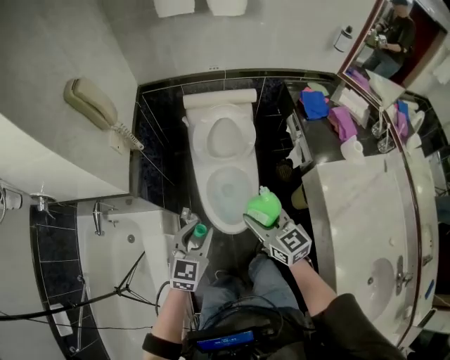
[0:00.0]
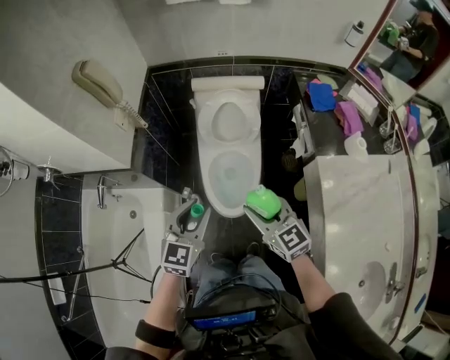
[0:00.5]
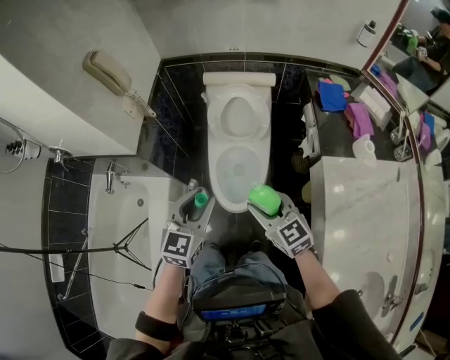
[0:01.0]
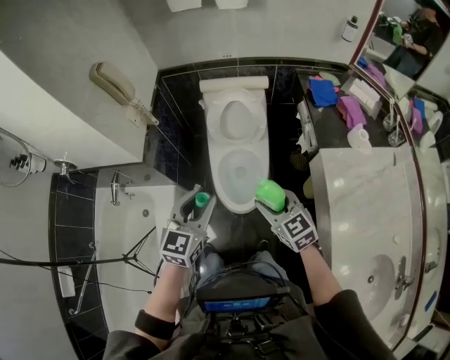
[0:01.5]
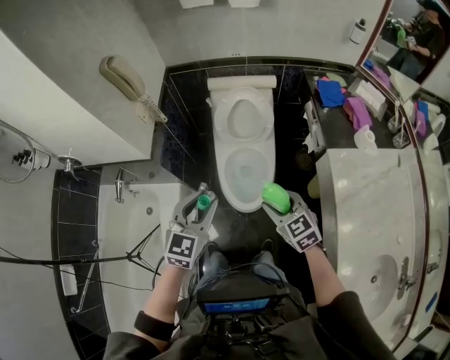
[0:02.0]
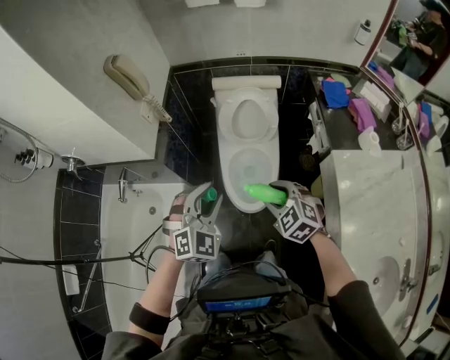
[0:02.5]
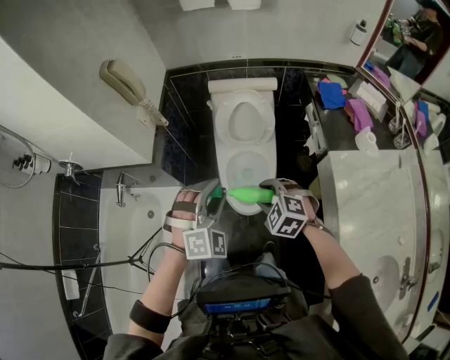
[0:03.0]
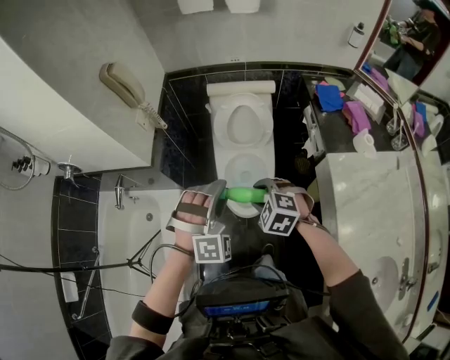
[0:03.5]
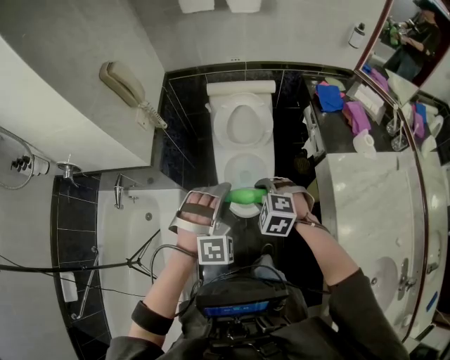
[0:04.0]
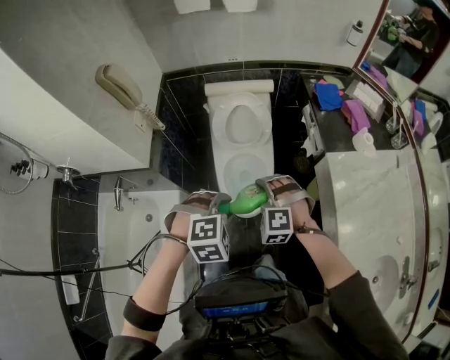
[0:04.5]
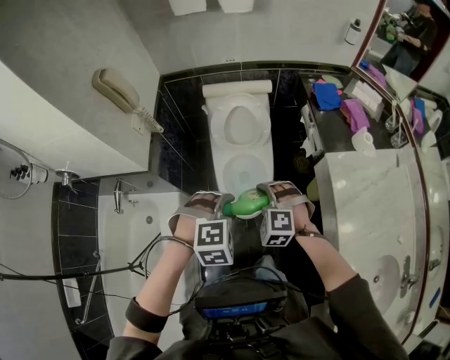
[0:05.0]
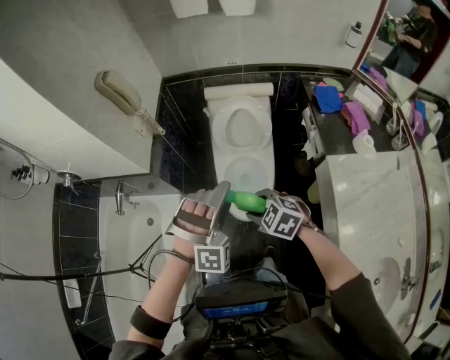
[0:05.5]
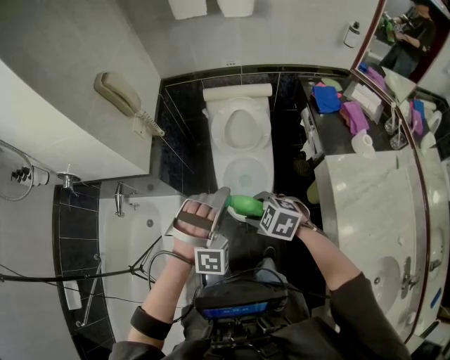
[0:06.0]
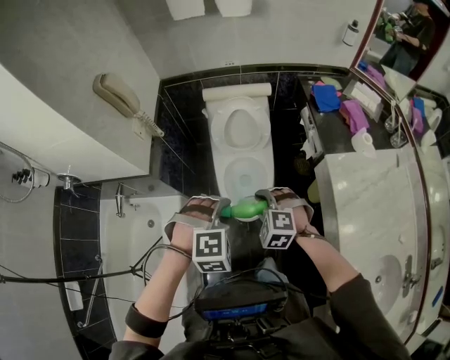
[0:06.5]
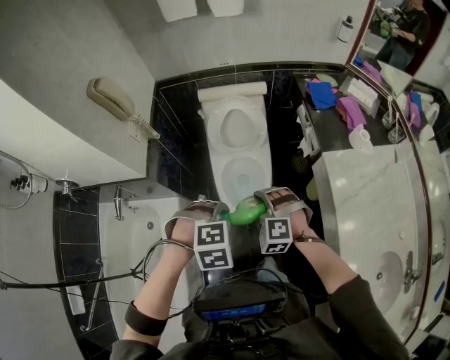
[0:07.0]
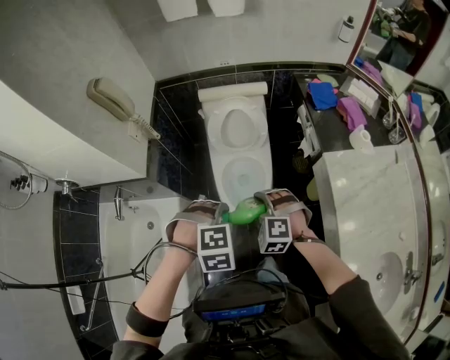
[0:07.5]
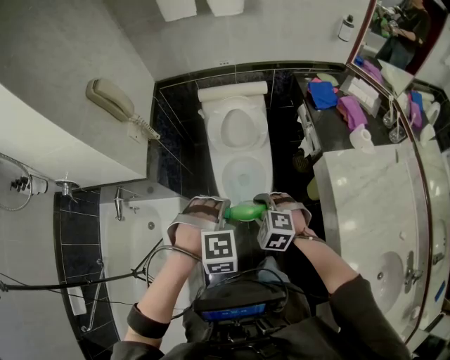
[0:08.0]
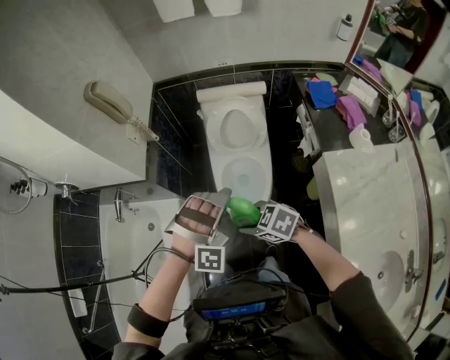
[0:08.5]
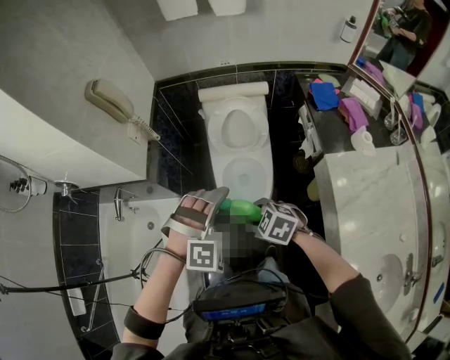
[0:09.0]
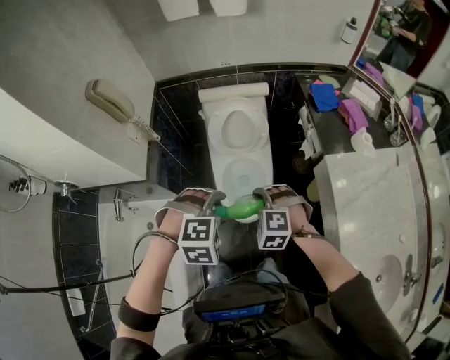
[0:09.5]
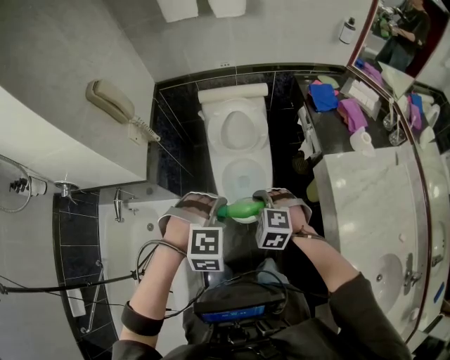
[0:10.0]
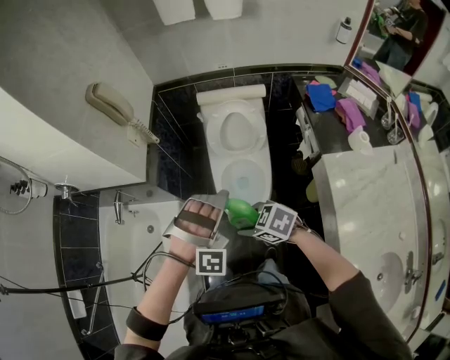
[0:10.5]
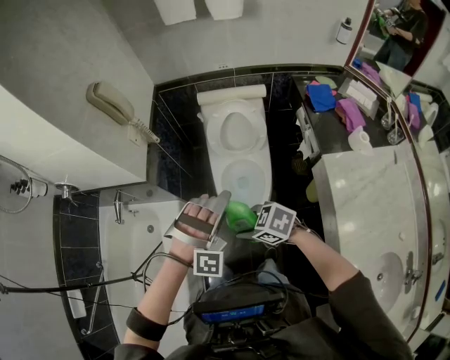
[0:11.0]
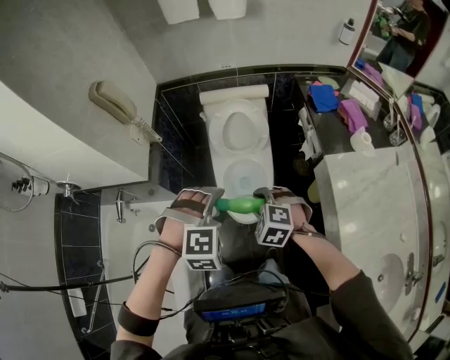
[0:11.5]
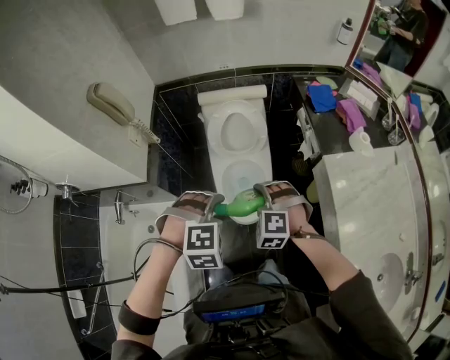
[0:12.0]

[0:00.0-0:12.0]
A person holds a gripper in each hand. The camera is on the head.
0:00.0 to 0:02.0: The right gripper heads backward, covering some 10 cm, and changes its angle by roughly 20 degrees, while the left gripper is displaced upward by some 10 cm.
0:02.0 to 0:04.0: The right gripper shifts by roughly 5 cm, and rotates some 50 degrees; the left gripper is displaced to the right by about 5 cm, and rotates around the line of its fingers by approximately 70 degrees, clockwise from behind.
0:04.0 to 0:06.0: The right gripper swivels about 20 degrees, while the left gripper reaches about 5 cm downward, then returns, and opens, then closes again.
0:06.0 to 0:08.0: The right gripper changes place by about 5 cm, and swivels about 20 degrees. Meanwhile the left gripper goes some 5 cm downward, and tips its fingers downward by some 40 degrees.
0:08.0 to 0:10.0: The left gripper opens and closes again.
0:10.0 to 0:12.0: The left gripper opens, then closes again.

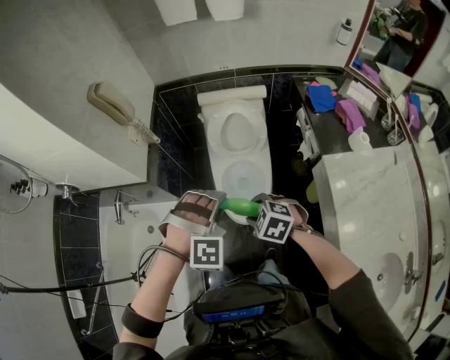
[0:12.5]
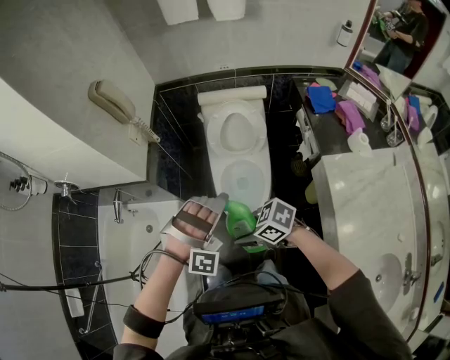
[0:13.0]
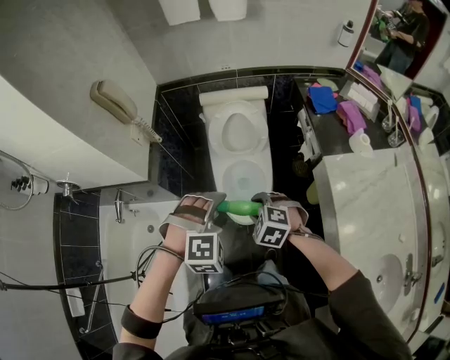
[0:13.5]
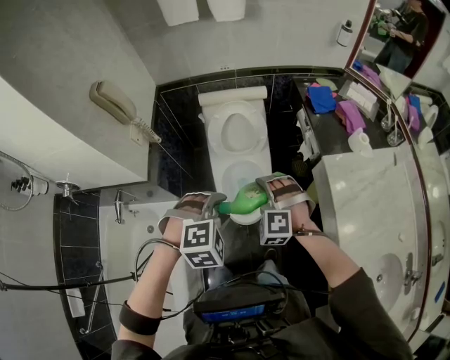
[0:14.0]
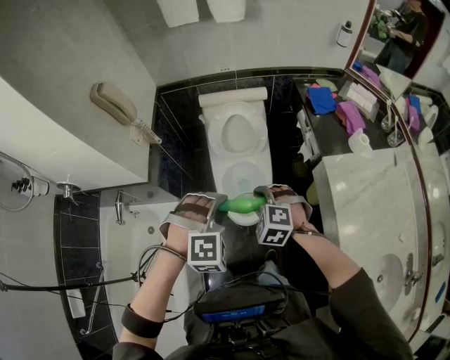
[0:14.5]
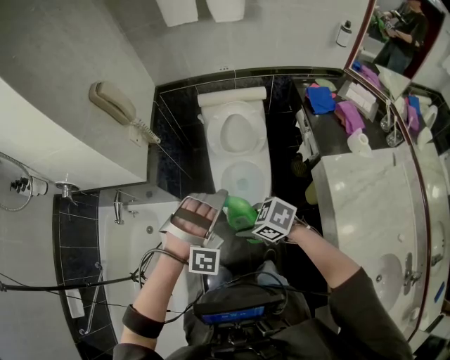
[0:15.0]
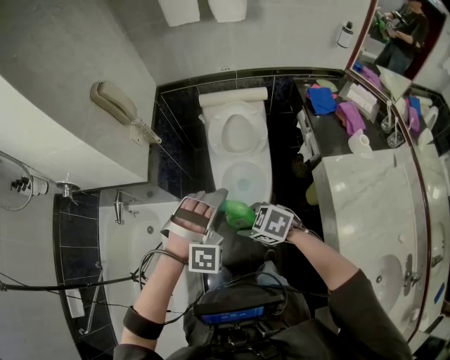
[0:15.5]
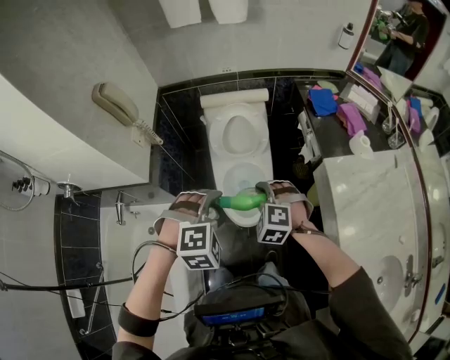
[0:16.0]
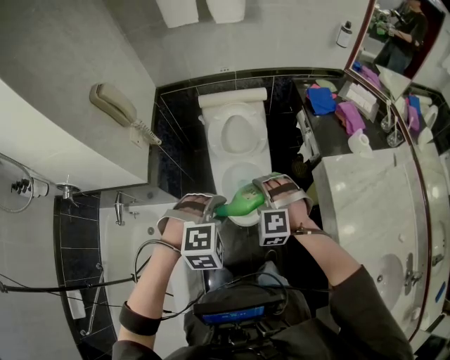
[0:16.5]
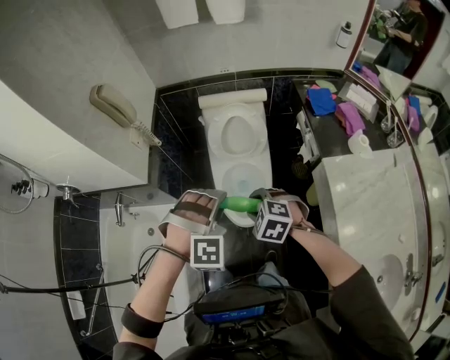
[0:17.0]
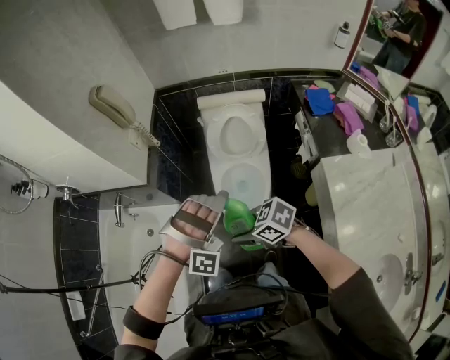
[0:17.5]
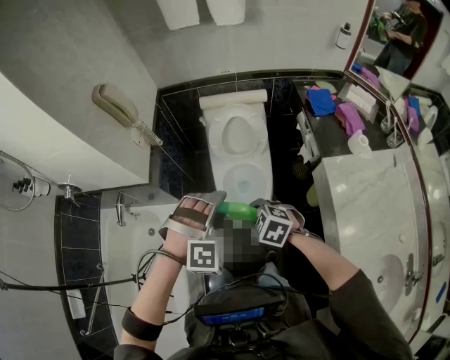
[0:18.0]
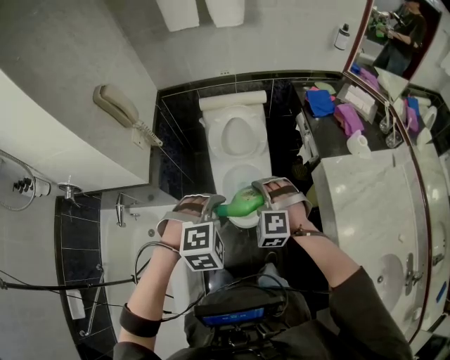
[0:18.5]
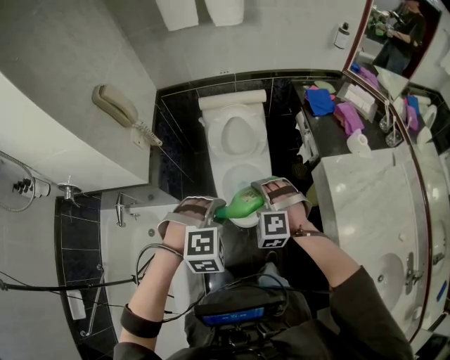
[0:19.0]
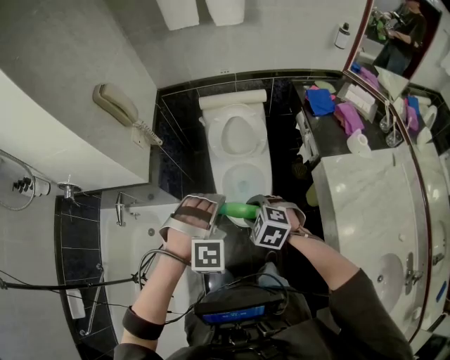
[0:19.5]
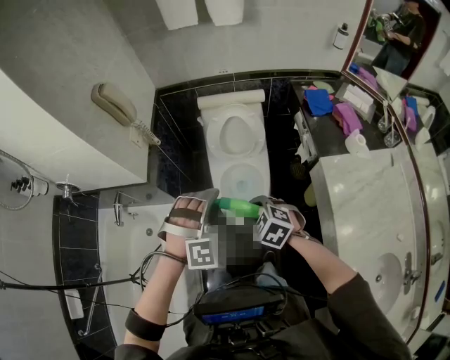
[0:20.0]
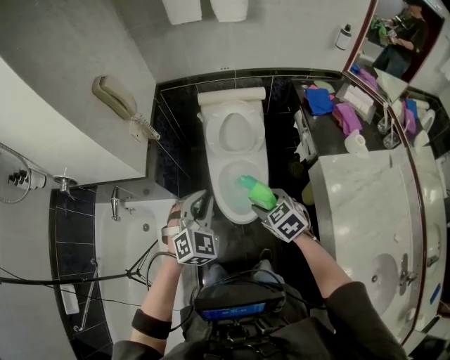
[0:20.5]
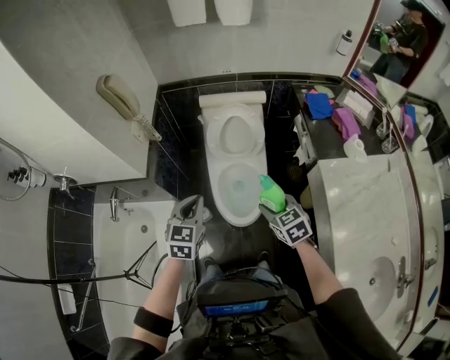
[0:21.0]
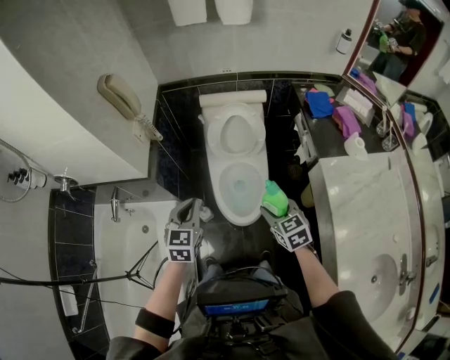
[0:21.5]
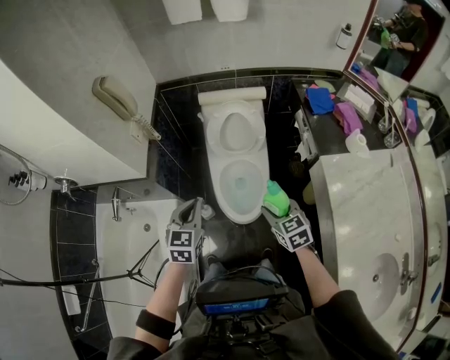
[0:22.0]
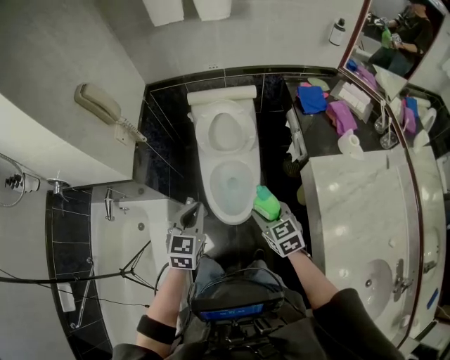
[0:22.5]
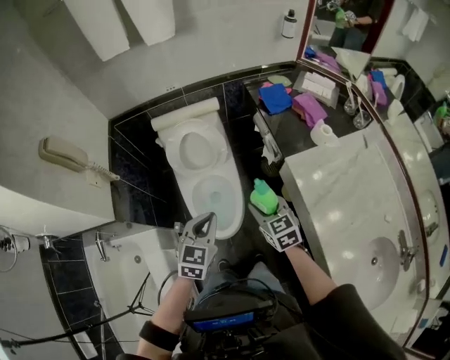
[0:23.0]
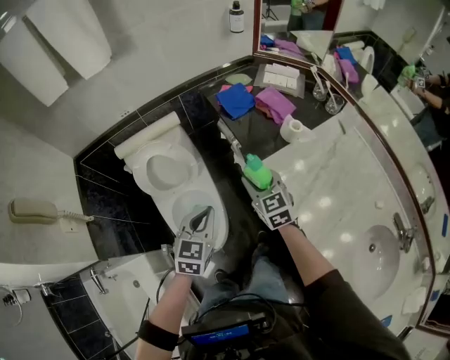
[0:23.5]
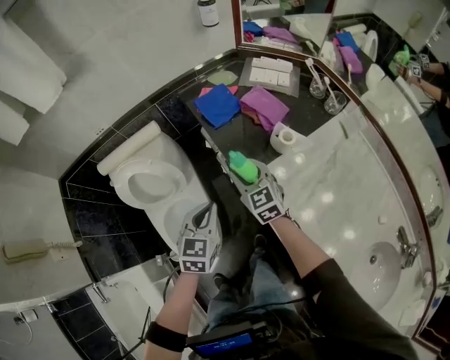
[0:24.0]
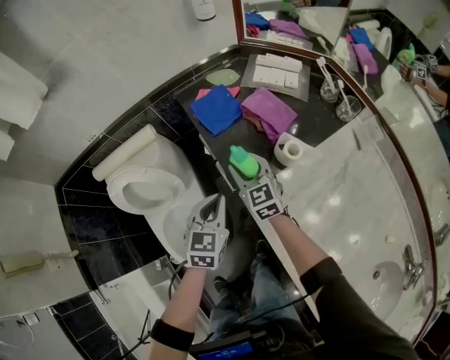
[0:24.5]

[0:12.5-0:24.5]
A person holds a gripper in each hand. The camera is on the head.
0:12.5 to 0:14.5: The left gripper opens and closes again, while the right gripper turns by approximately 20 degrees.
0:14.5 to 0:16.5: The left gripper opens, then closes again. The right gripper rotates about 20 degrees.
0:18.5 to 0:20.5: The right gripper twists about 50 degrees clockwise, seen from behind; the left gripper shifts by roughly 5 cm, swivels roughly 40 degrees, and closes up.
0:20.5 to 0:22.5: The left gripper goes to the left and returns, about 5 cm each way, and swivels about 40 degrees; the right gripper travels to the right by roughly 5 cm.
0:22.5 to 0:24.5: The two grippers travel together, approximately 50 cm. The right gripper turns by approximately 30 degrees. The left gripper swivels approximately 30 degrees.

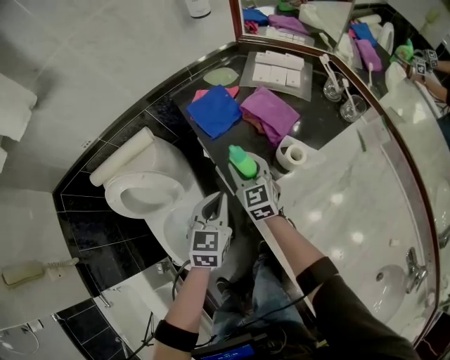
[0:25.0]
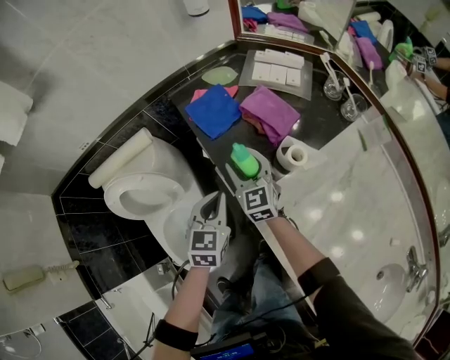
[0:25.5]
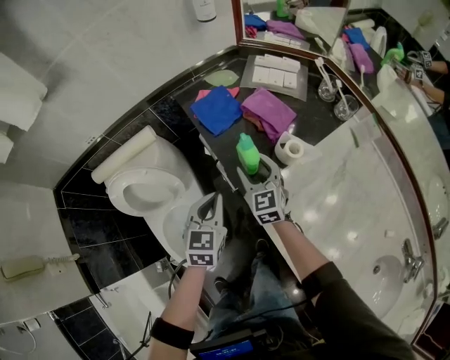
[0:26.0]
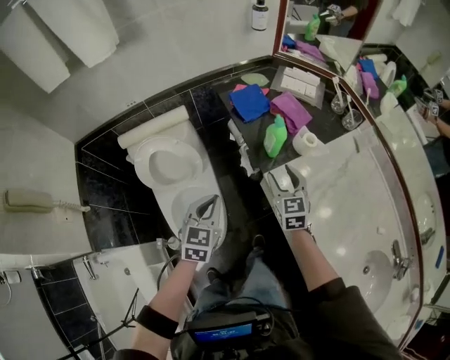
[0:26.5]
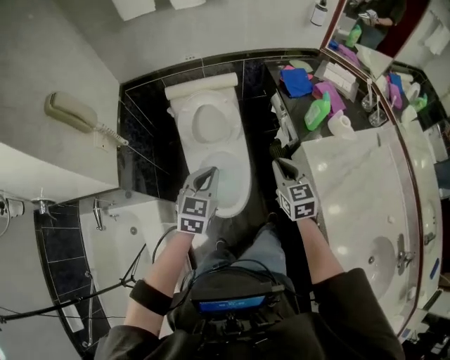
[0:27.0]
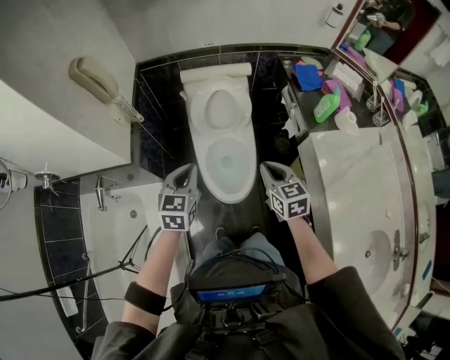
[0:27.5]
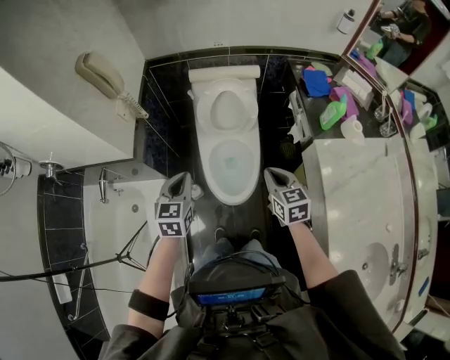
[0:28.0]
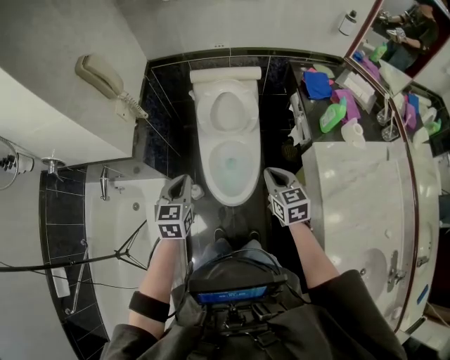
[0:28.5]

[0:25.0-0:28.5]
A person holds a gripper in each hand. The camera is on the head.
0:25.0 to 0:27.0: The left gripper is displaced to the left, backward and upward by some 40 cm; the right gripper goes about 40 cm backward, to the left and upward, and closes its fingers.
0:27.0 to 0:28.5: The left gripper shifts about 15 cm to the left and backward, and turns by some 20 degrees. Meanwhile the right gripper is displaced to the left and backward by about 10 cm.
